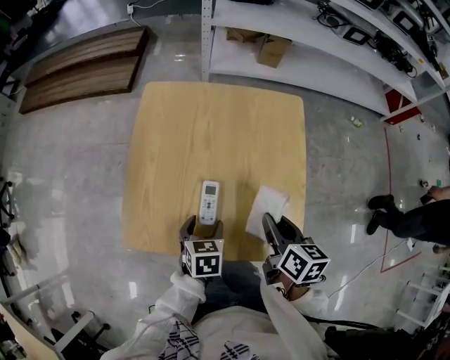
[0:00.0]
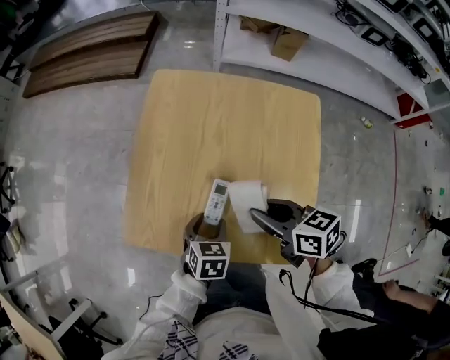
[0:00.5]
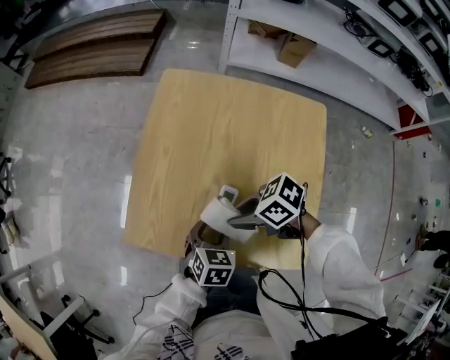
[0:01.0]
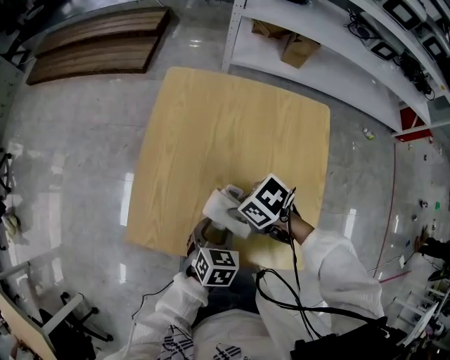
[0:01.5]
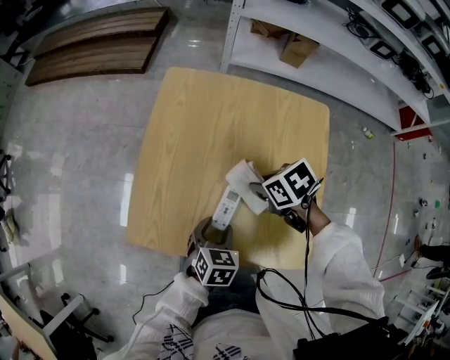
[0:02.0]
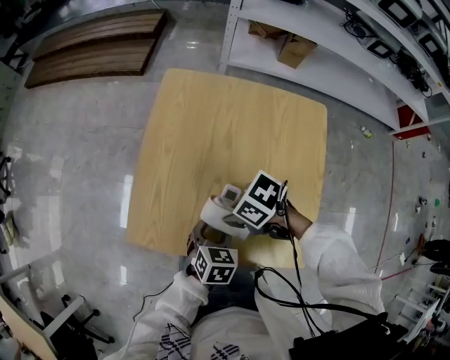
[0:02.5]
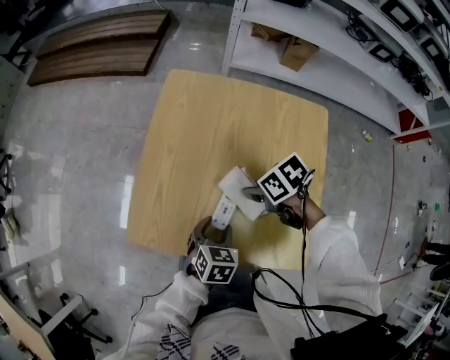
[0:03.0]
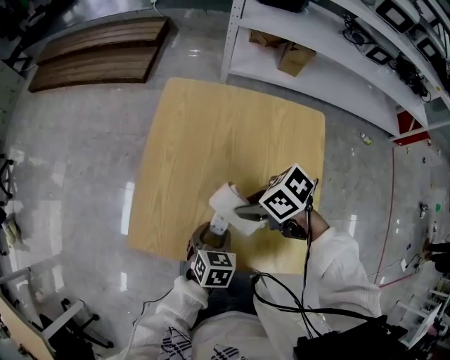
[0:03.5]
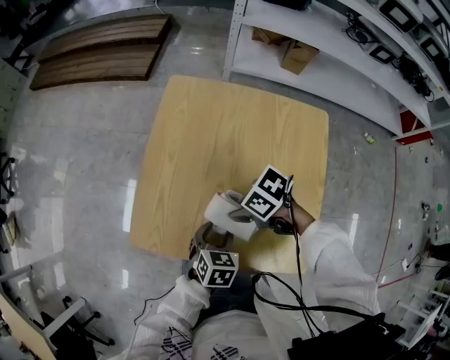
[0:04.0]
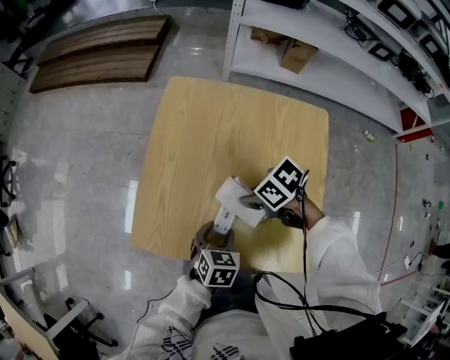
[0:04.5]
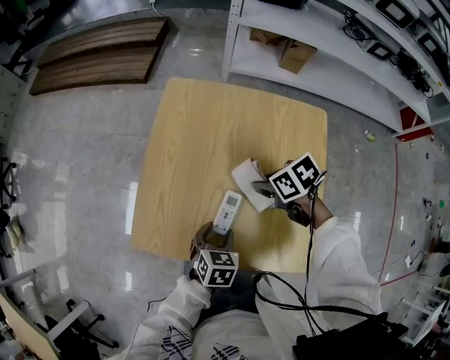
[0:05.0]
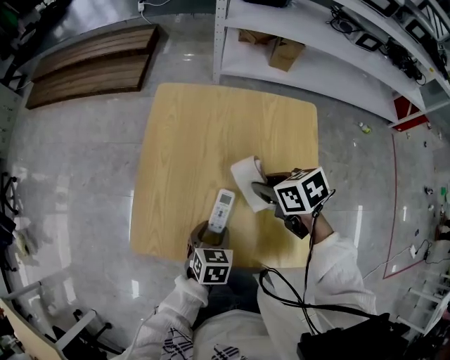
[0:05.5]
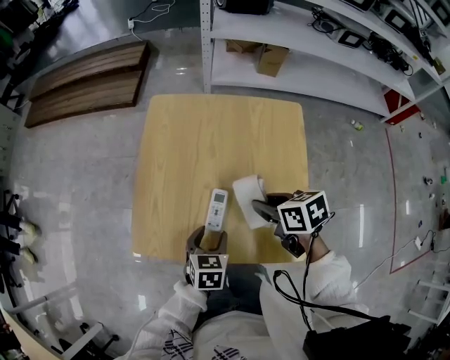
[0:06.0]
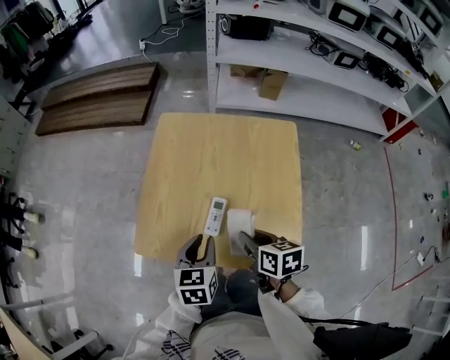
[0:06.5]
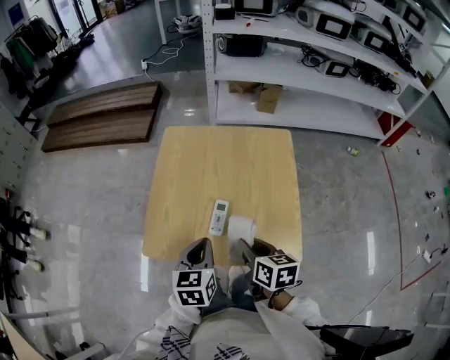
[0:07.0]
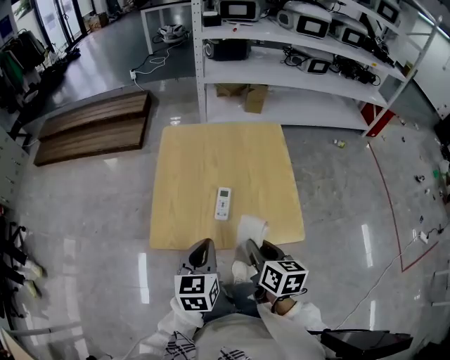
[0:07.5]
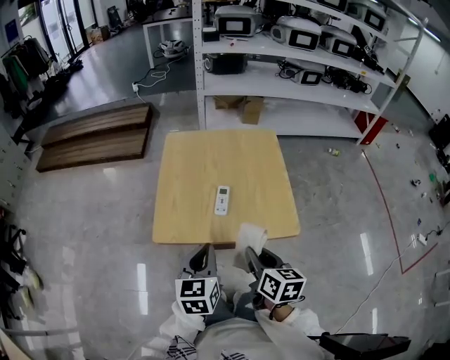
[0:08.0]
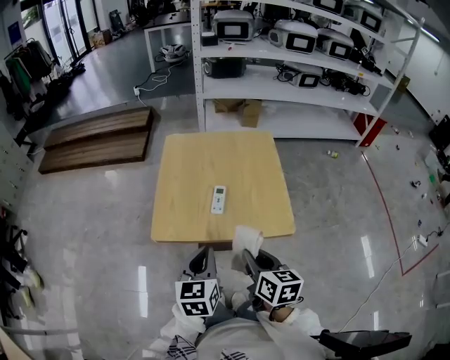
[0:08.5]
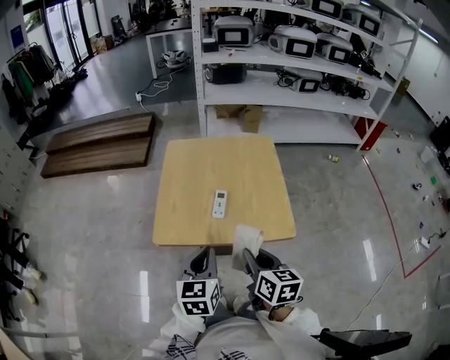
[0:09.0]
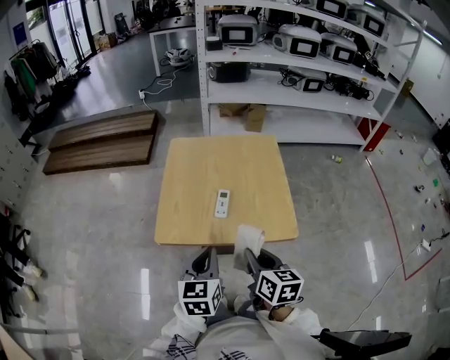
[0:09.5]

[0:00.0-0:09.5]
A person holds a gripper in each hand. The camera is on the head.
0:00.0 to 0:02.0: The right gripper shifts by approximately 15 cm, and swivels about 60 degrees.
0:02.0 to 0:04.0: The right gripper ends up some 10 cm from where it was, and swivels roughly 30 degrees.
0:04.0 to 0:05.5: The right gripper moves some 10 cm, and swivels approximately 40 degrees.
0:05.5 to 0:07.5: The right gripper changes place by roughly 25 cm, and swivels some 50 degrees. The left gripper moves upward, roughly 20 cm, rotates about 30 degrees, and closes its fingers.
0:07.5 to 0:09.5: The grippers both shift backward by roughly 5 cm.

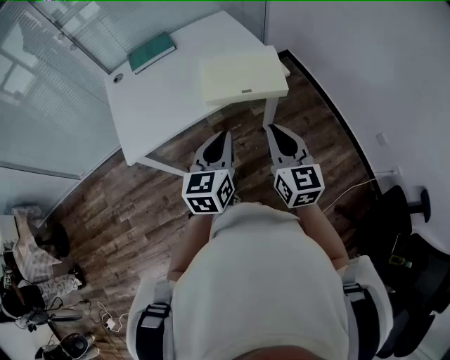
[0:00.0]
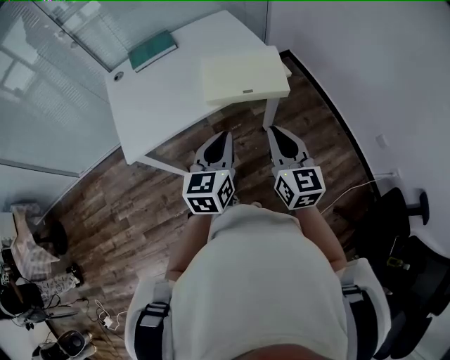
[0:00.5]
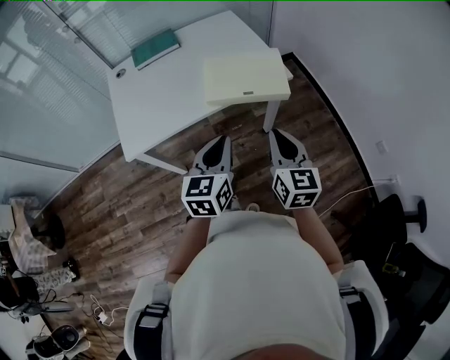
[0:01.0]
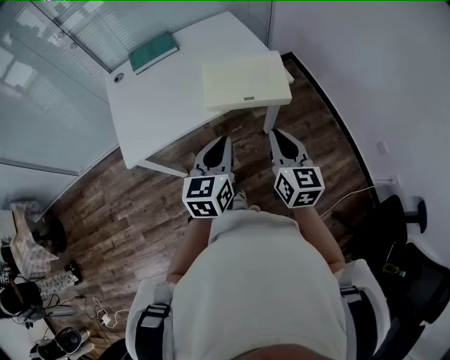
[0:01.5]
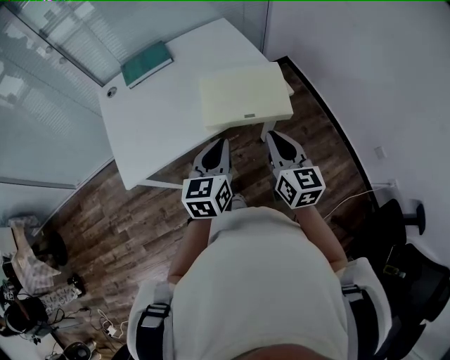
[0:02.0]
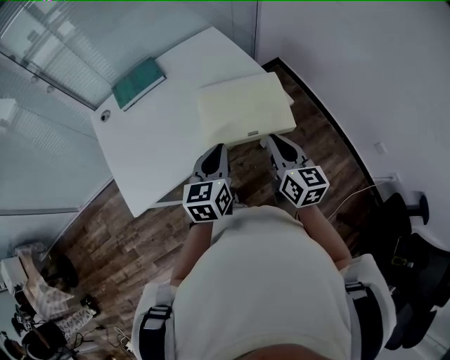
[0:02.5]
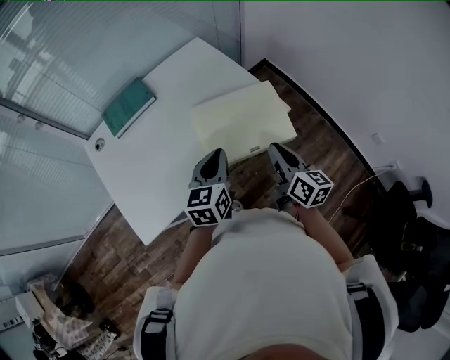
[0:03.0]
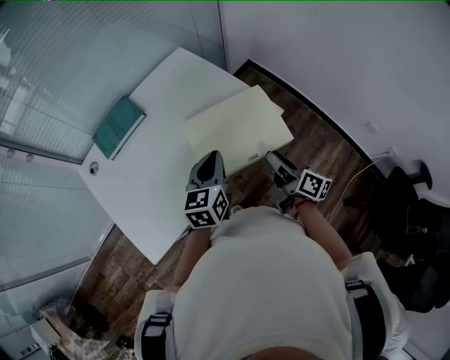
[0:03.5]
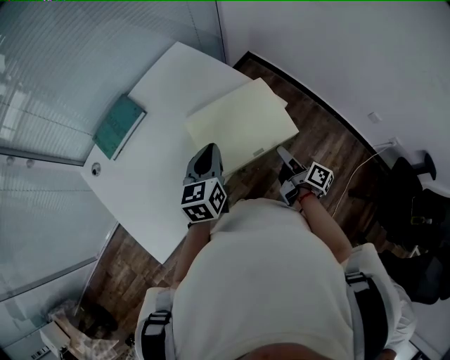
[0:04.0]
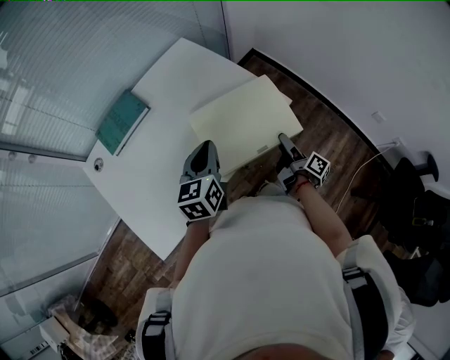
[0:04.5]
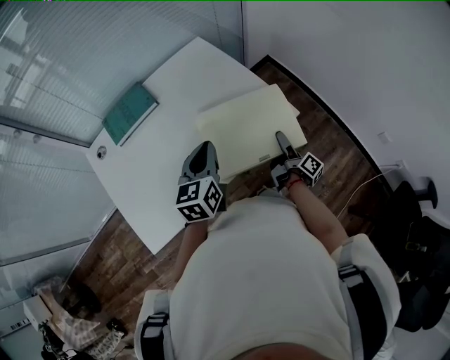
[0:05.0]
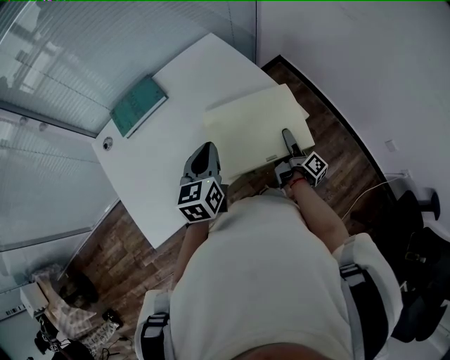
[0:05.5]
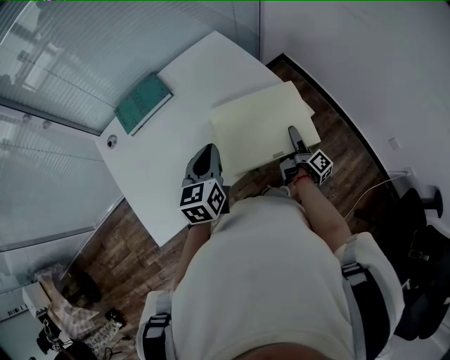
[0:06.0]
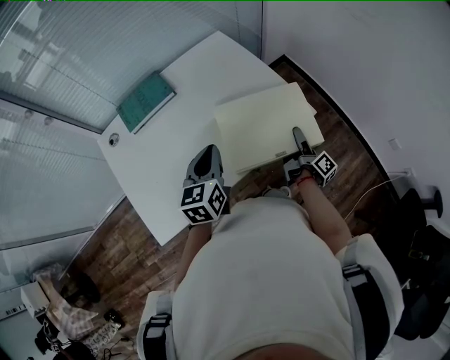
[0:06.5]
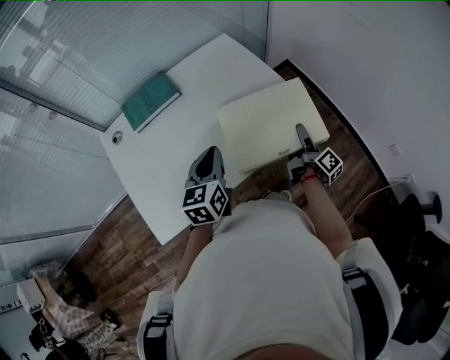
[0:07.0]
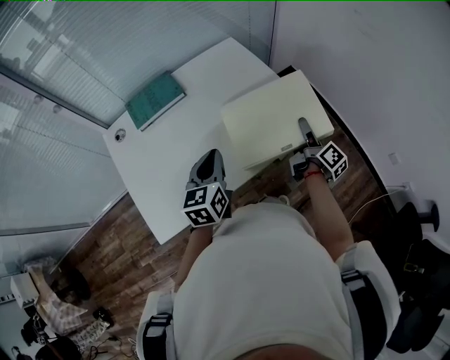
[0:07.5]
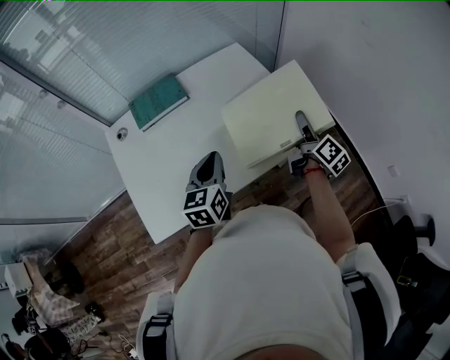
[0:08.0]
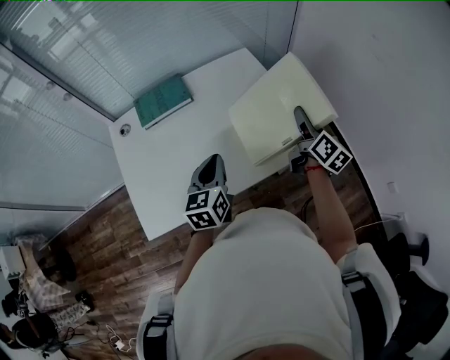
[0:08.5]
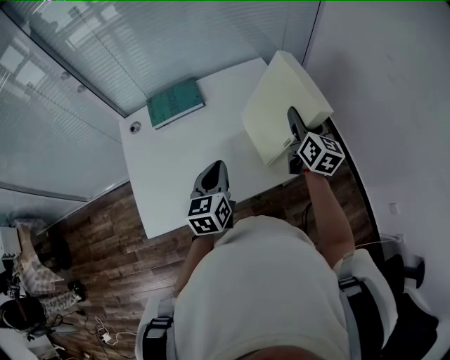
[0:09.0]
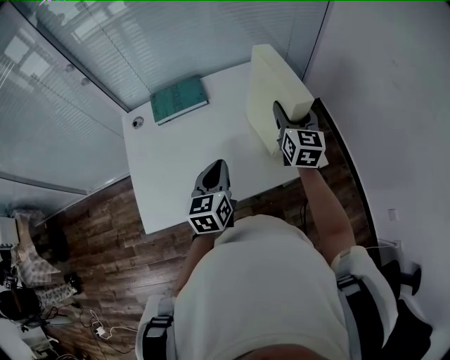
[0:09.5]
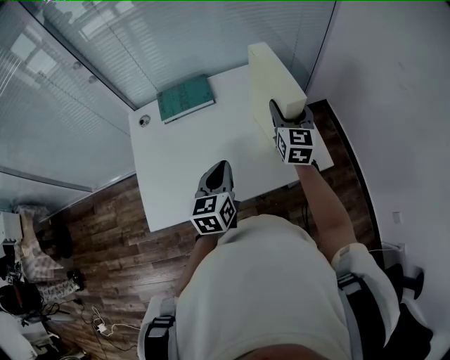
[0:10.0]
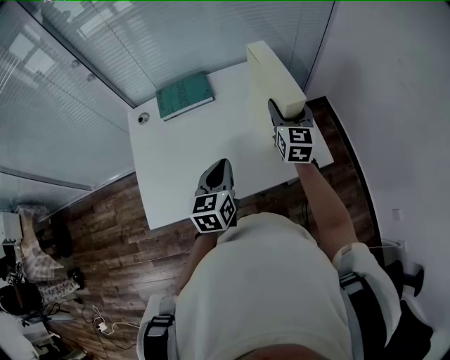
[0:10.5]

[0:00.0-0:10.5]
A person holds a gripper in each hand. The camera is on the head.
0:00.0 to 0:02.0: The grippers both shift forward by some 10 cm.
0:02.0 to 0:04.0: The left gripper travels forward by roughly 20 cm, while the right gripper shifts some 20 cm downward and forward, rotates around the line of its fingers by some 70 degrees, clockwise from behind, and opens its fingers.
0:04.0 to 0:06.5: The left gripper moves to the left, approximately 5 cm. The right gripper travels forward by about 10 cm.
0:06.5 to 0:08.5: The right gripper heads upward and forward, covering about 20 cm, and rolls counterclockwise, seen from behind, by about 50 degrees.
0:08.5 to 0:10.5: The right gripper is displaced to the left and forward by about 15 cm, and twists some 50 degrees counterclockwise, seen from behind.

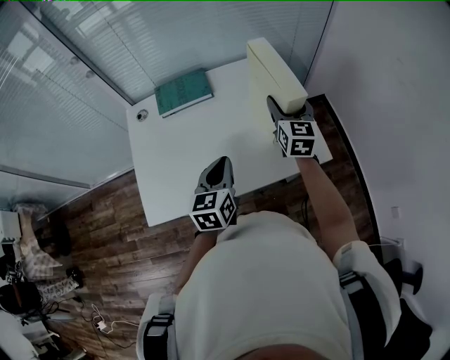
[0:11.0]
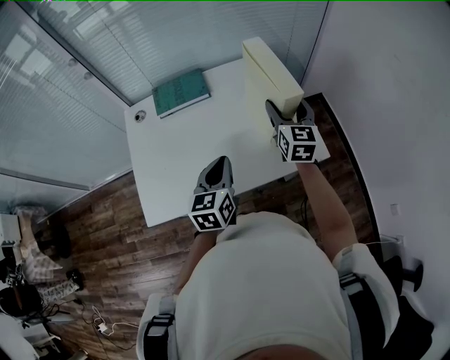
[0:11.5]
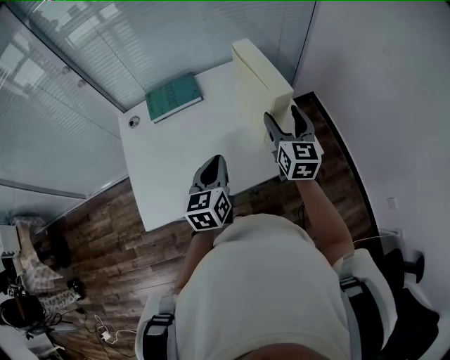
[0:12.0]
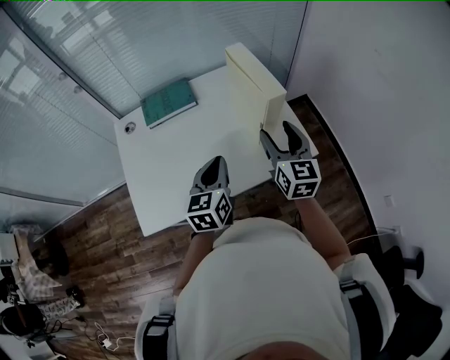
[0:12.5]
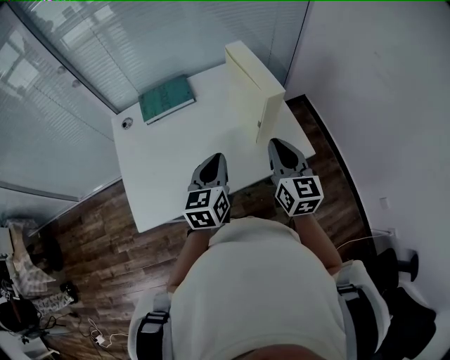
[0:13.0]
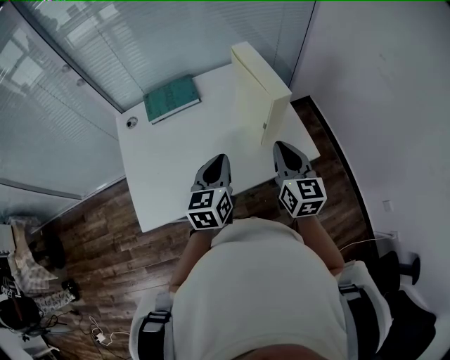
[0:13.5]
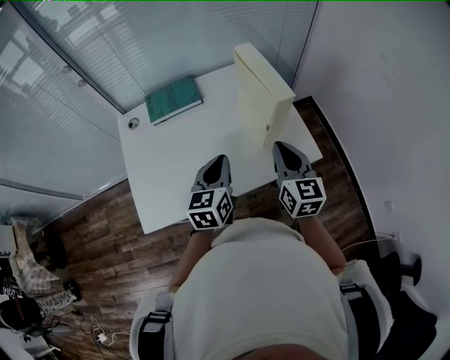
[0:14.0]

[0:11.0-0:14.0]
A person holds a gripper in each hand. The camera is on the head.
0:11.0 to 0:12.5: The right gripper goes about 10 cm backward.
0:12.5 to 0:14.0: The right gripper closes its fingers.

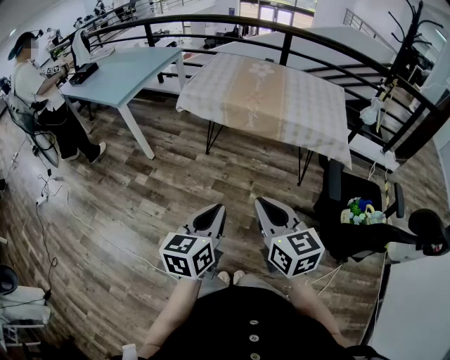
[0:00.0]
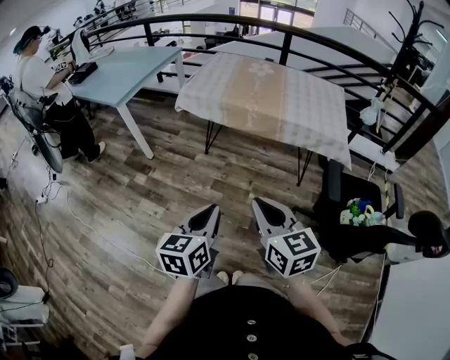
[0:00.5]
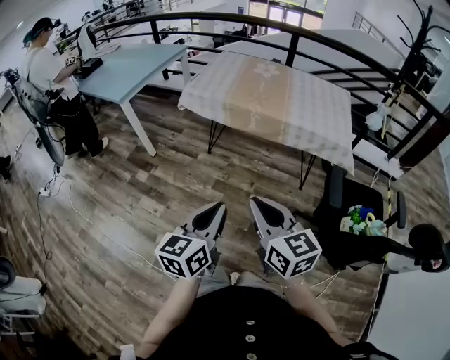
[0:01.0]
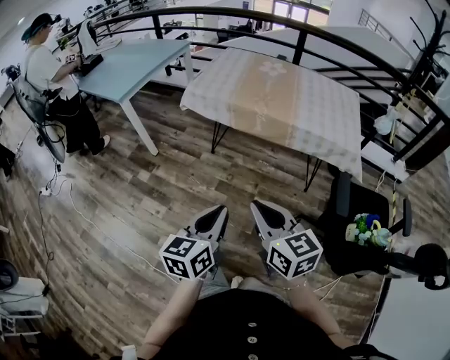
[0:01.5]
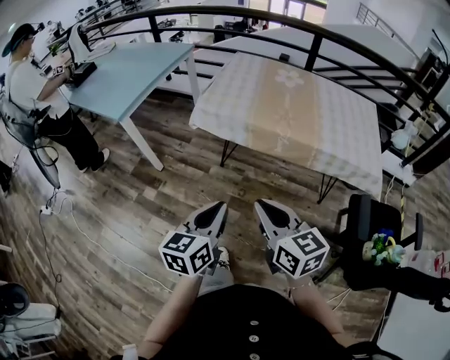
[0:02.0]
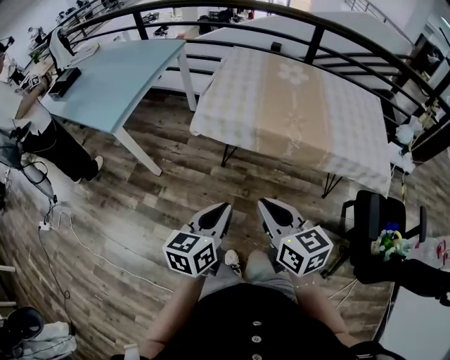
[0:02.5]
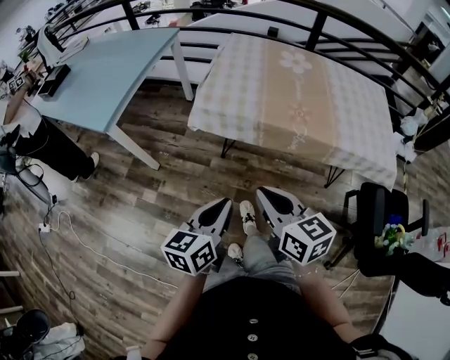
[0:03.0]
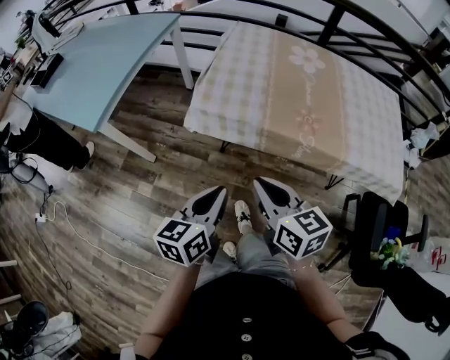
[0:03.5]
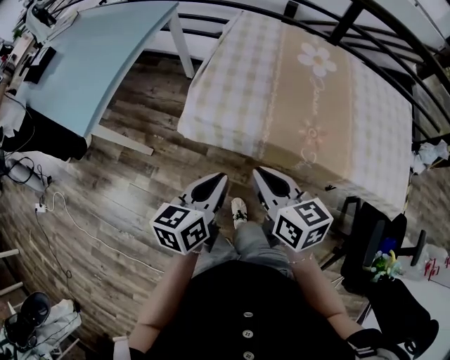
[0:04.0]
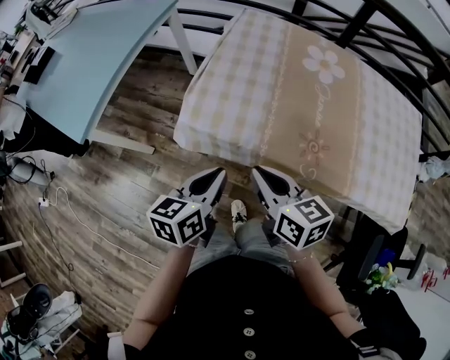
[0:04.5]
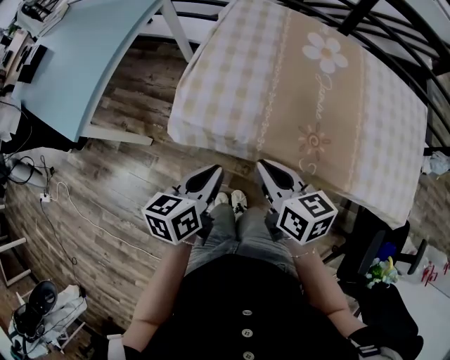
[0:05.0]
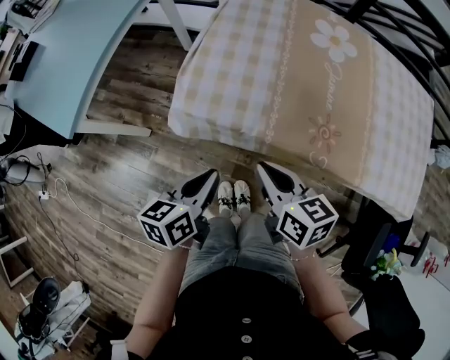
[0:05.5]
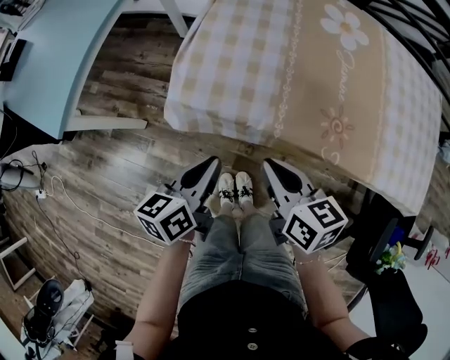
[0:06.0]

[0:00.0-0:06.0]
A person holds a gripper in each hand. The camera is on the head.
0:00.0 to 0:02.0: The left gripper is displaced forward by roughly 25 cm, while the right gripper heads forward and to the left, covering roughly 25 cm.
0:02.0 to 0:04.0: The two grippers go approximately 30 cm forward.
0:04.0 to 0:06.0: Both grippers travel together downward and forward, roughly 10 cm.
